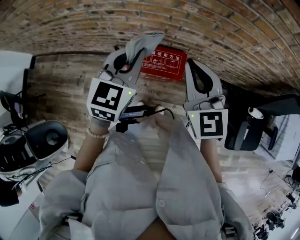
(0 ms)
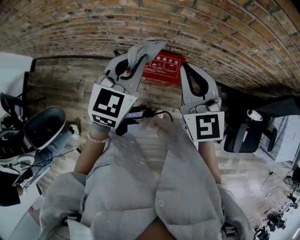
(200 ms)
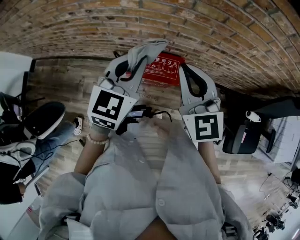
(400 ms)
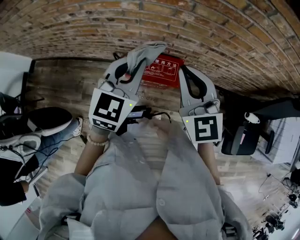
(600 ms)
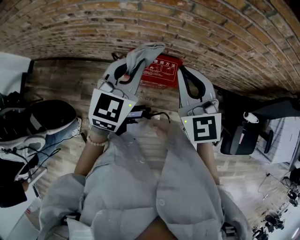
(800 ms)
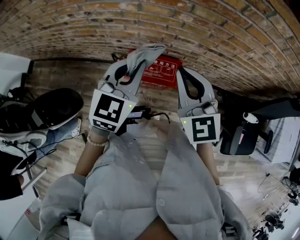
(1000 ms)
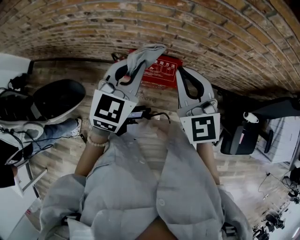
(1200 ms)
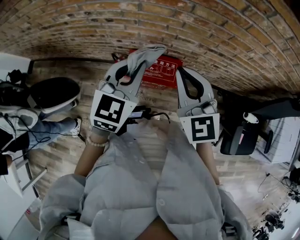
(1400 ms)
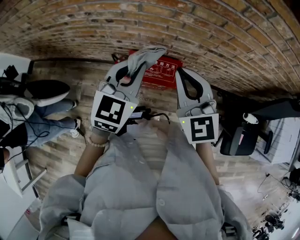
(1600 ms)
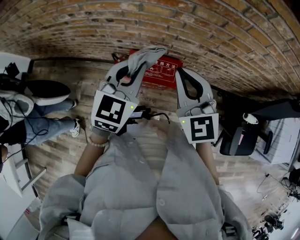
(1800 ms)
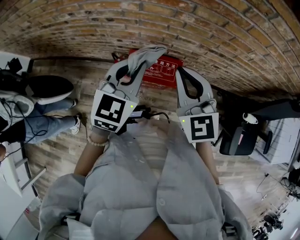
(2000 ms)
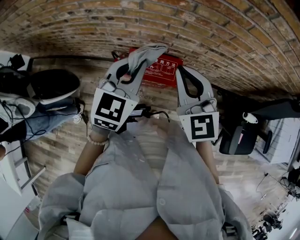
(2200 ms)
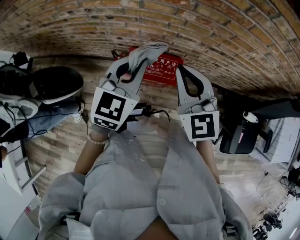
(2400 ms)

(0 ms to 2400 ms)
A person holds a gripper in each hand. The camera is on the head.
0 ms - 1200 ms: There are only small adjustments of the grippers.
1200 ms - 2400 ms: The two grippers keep their place.

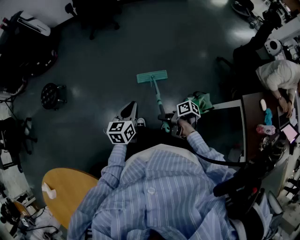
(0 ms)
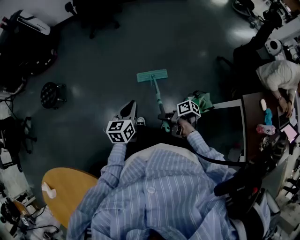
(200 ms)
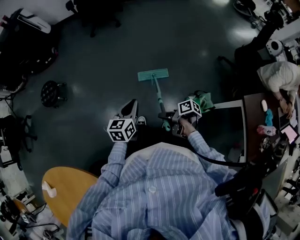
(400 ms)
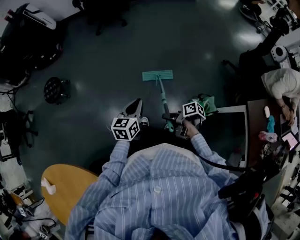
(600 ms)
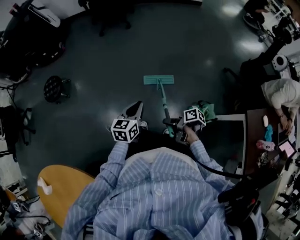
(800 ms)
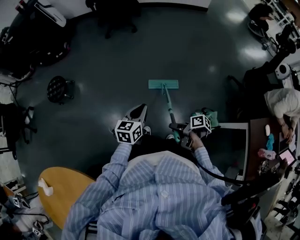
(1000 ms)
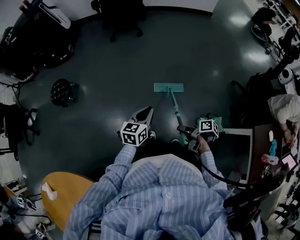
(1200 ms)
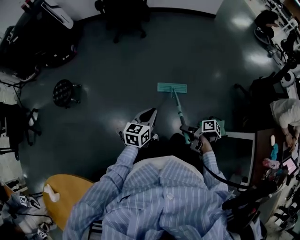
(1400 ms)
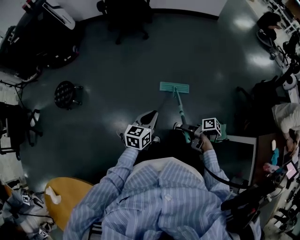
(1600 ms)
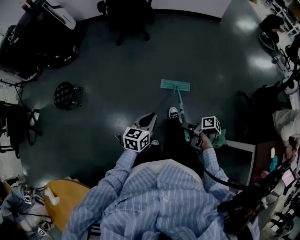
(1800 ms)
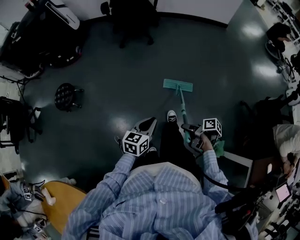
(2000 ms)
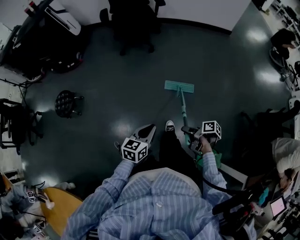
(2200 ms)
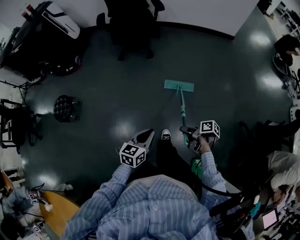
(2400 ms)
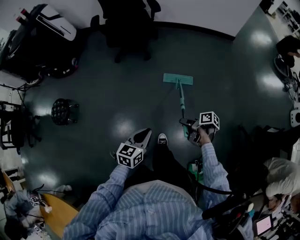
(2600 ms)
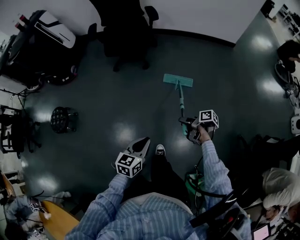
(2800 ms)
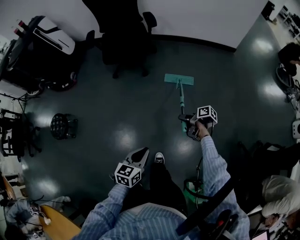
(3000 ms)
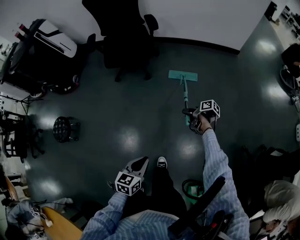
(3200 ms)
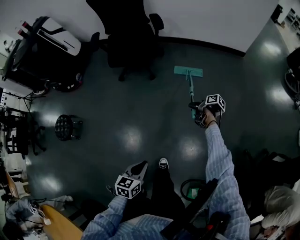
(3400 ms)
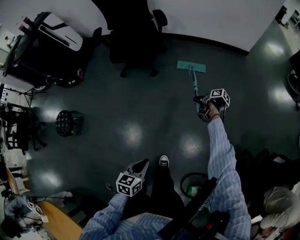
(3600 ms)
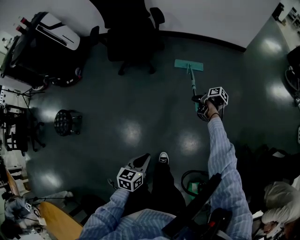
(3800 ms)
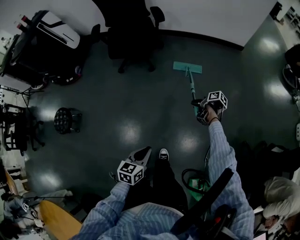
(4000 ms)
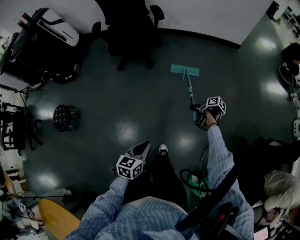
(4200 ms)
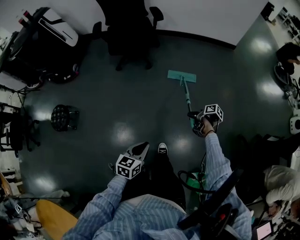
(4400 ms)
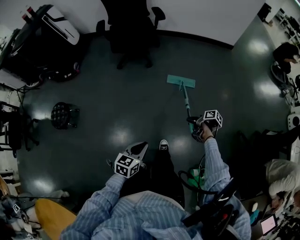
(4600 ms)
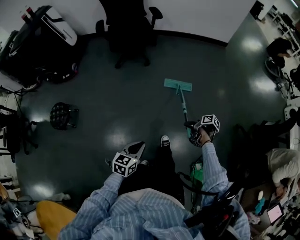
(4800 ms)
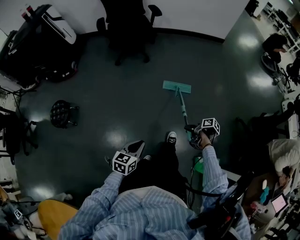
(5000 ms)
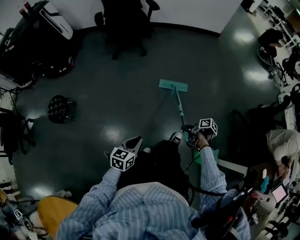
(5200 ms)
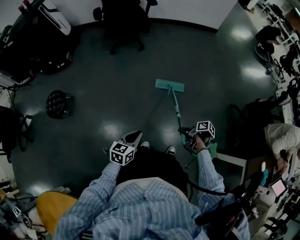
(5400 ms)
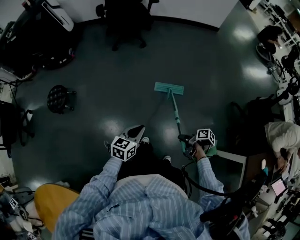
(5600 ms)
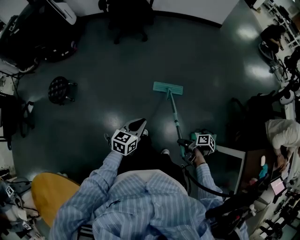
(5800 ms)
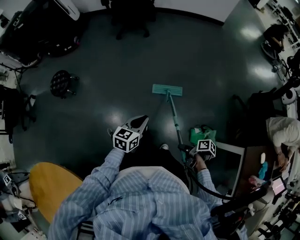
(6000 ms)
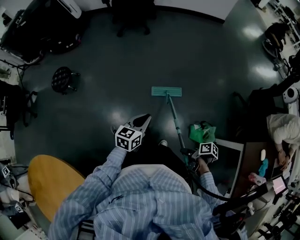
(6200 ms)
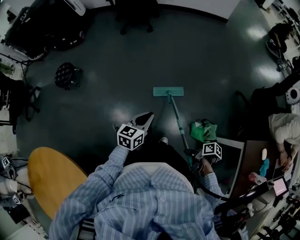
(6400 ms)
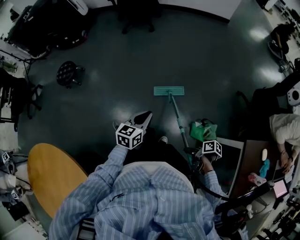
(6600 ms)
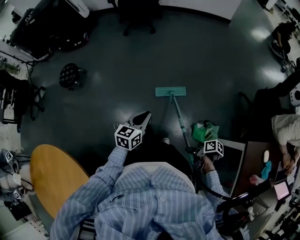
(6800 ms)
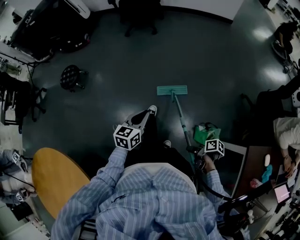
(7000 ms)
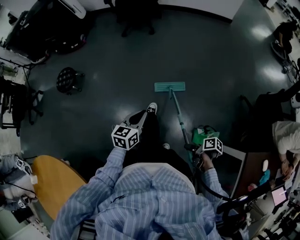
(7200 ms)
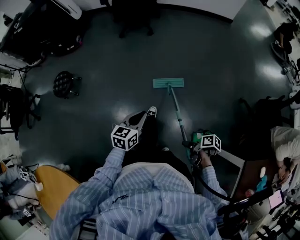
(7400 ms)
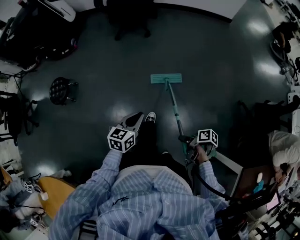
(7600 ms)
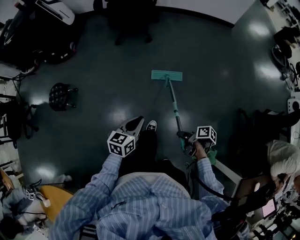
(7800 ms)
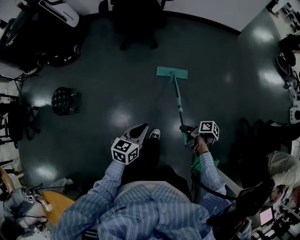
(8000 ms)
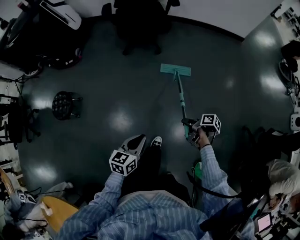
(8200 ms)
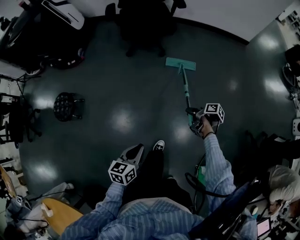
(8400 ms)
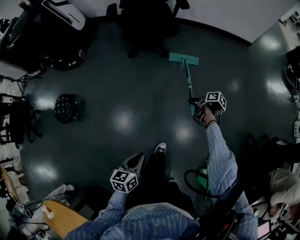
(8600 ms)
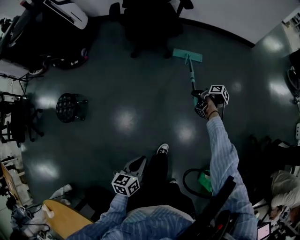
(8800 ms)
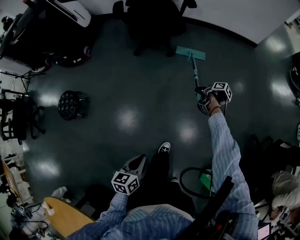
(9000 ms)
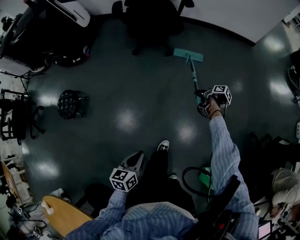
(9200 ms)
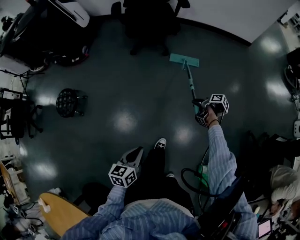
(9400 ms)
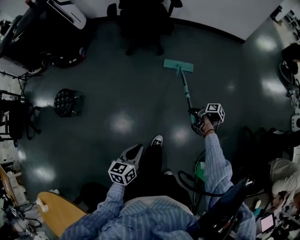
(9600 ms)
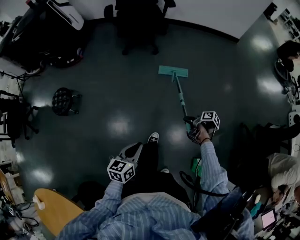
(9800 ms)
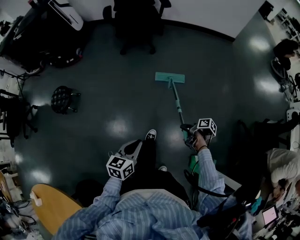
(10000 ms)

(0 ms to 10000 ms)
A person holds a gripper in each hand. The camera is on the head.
0 ms - 1400 ms: The left gripper ends up some 10 cm from where it was.
1400 ms - 2800 ms: The left gripper changes place by approximately 35 cm.
4200 ms - 5800 ms: The left gripper shifts by roughly 30 cm.
7200 ms - 8600 ms: The left gripper changes place by roughly 25 cm.
8600 ms - 10000 ms: The left gripper changes place by roughly 15 cm.

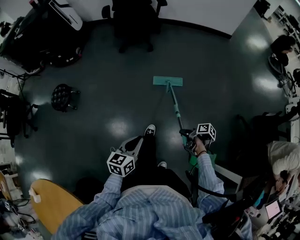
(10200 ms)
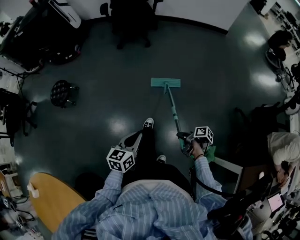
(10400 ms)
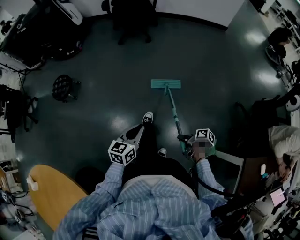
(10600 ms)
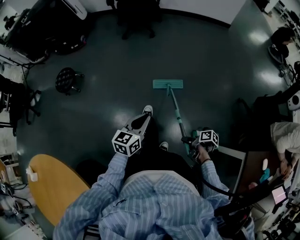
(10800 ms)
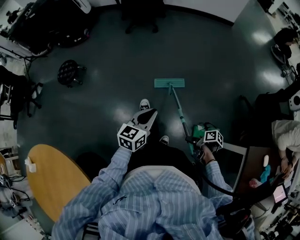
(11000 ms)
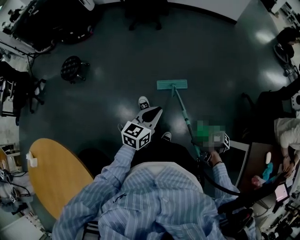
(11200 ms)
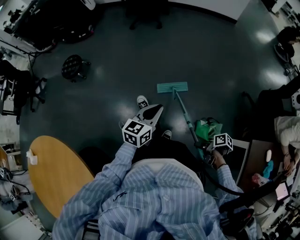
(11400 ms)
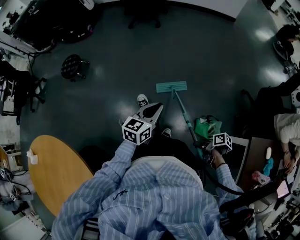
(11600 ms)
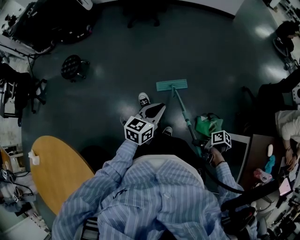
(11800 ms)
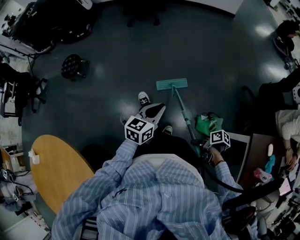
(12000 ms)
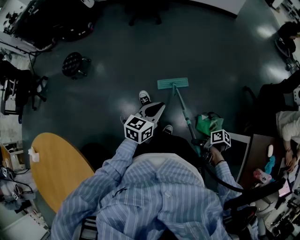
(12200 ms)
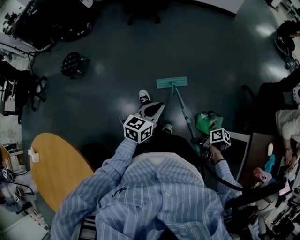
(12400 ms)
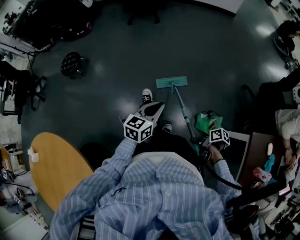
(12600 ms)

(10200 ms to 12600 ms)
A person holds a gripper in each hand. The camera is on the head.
10200 ms - 11400 ms: The left gripper changes place by some 20 cm.

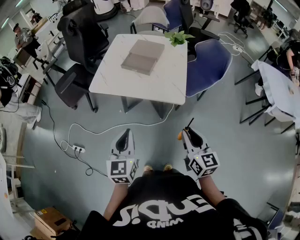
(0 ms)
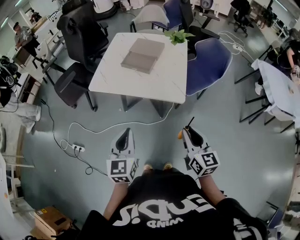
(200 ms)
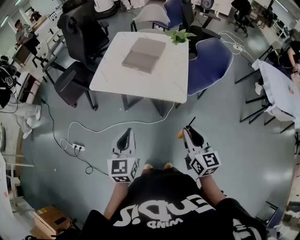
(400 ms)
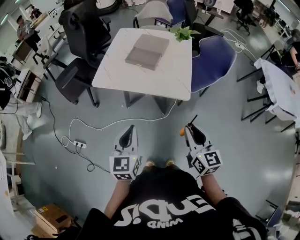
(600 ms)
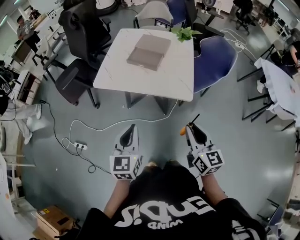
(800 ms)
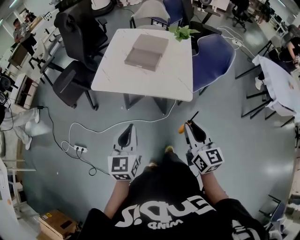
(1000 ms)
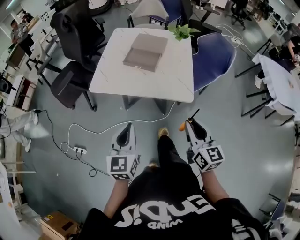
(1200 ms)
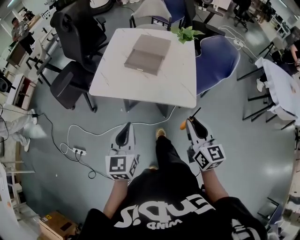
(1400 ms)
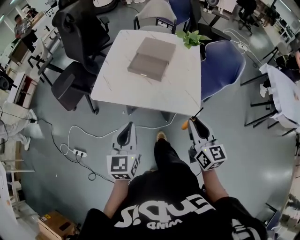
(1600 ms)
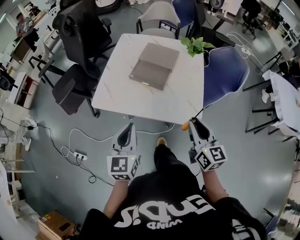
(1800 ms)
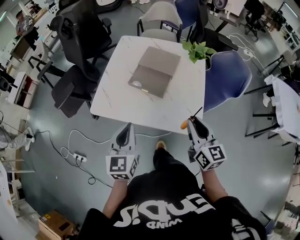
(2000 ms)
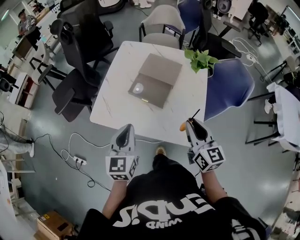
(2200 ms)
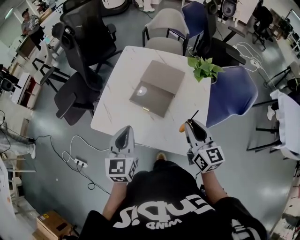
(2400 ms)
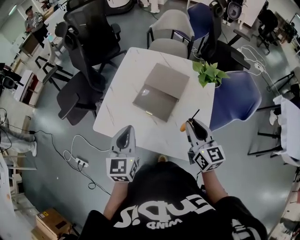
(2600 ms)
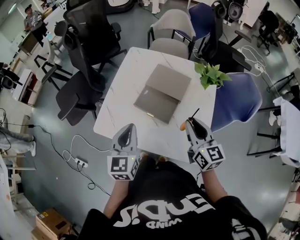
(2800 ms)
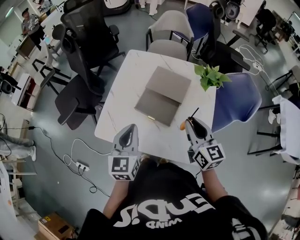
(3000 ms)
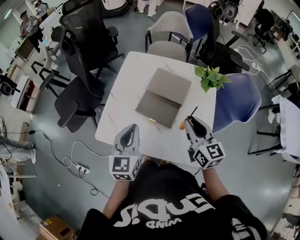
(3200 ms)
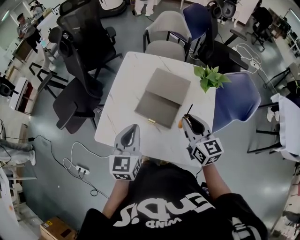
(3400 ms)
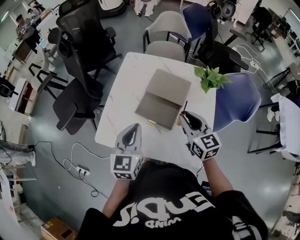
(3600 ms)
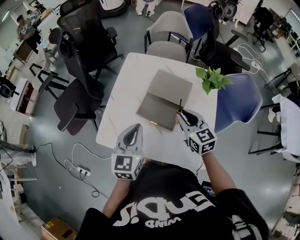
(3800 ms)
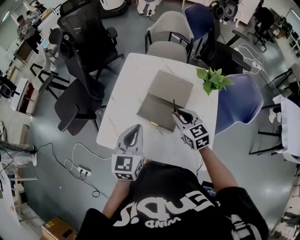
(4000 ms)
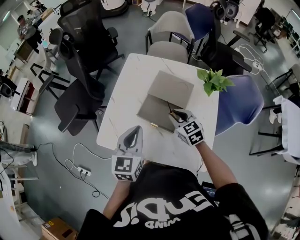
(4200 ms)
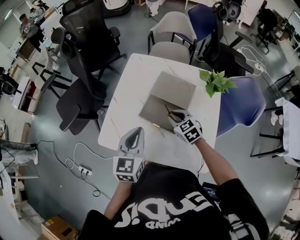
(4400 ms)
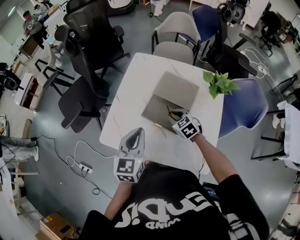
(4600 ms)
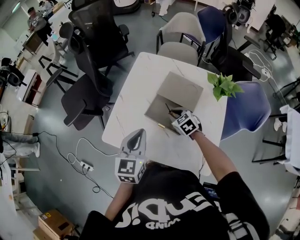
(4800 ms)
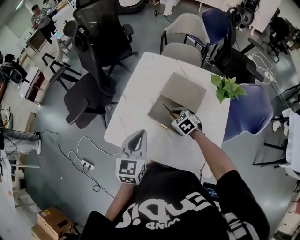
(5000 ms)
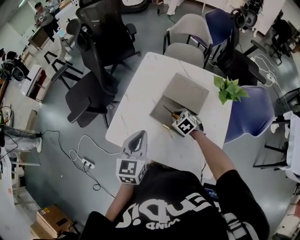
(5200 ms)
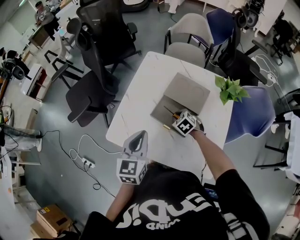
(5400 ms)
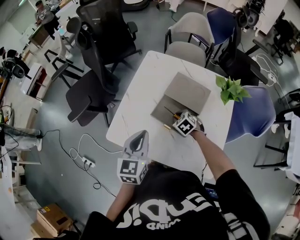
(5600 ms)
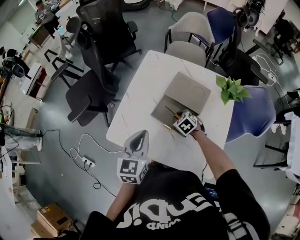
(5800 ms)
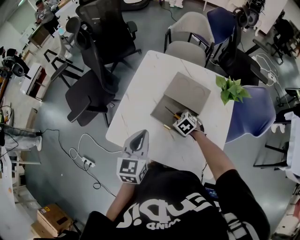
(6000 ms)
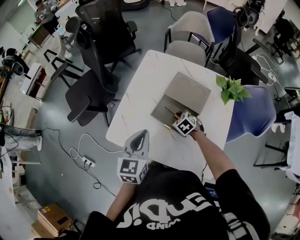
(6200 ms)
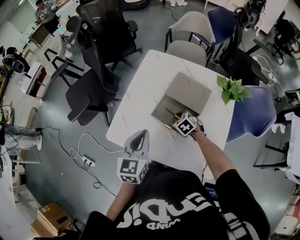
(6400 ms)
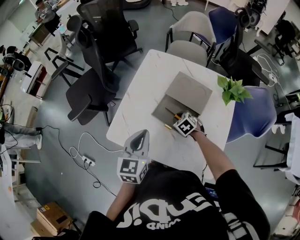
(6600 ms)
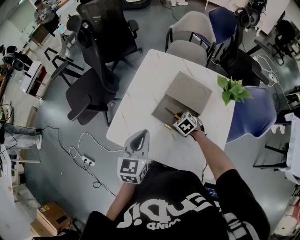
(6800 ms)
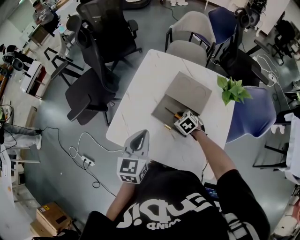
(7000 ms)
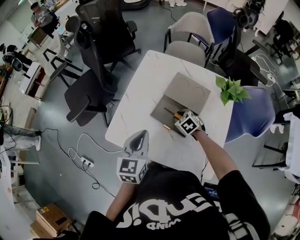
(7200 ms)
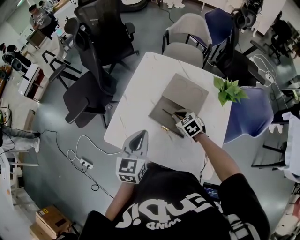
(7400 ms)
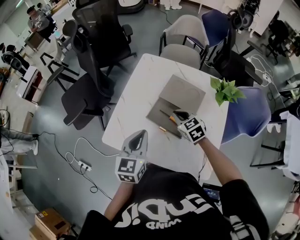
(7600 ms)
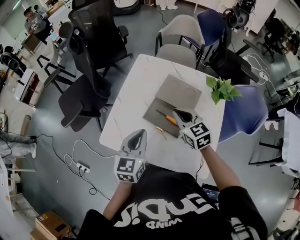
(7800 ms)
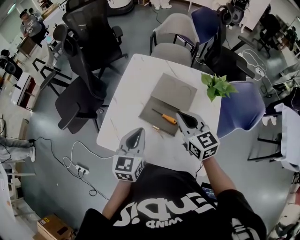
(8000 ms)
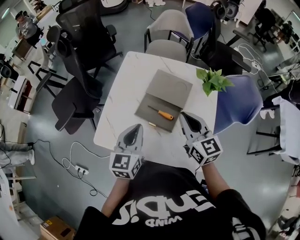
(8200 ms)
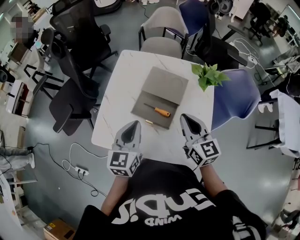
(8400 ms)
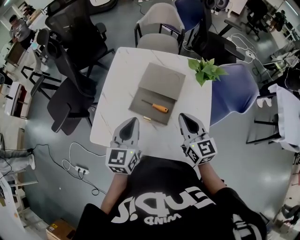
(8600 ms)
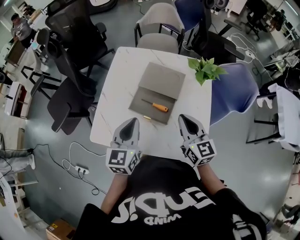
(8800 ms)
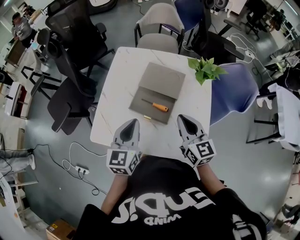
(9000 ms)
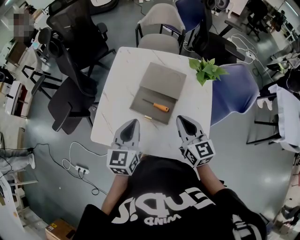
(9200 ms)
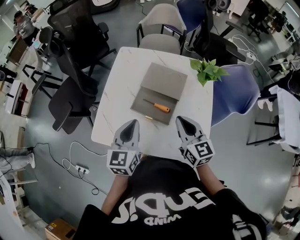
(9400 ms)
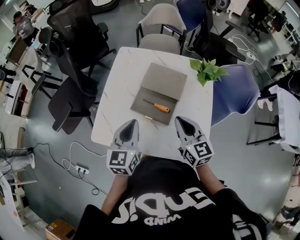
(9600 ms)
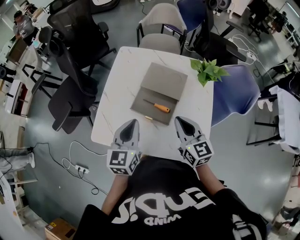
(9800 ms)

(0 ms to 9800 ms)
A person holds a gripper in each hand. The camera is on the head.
0 ms - 1400 ms: The left gripper goes roughly 10 cm forward and to the left; the right gripper shifts roughly 10 cm forward.
1400 ms - 2800 ms: The grippers both shift forward by roughly 30 cm.
2800 ms - 4200 ms: The left gripper goes roughly 5 cm forward, while the right gripper travels forward, downward and to the left by roughly 20 cm, and rotates about 30 degrees.
4200 ms - 5600 ms: The right gripper is displaced downward by about 15 cm, and swivels some 30 degrees.
5600 ms - 7000 ms: The grippers make only small movements.
7000 ms - 8400 ms: The right gripper travels upward and backward by about 25 cm, and angles its fingers upward, by some 50 degrees. The left gripper ends up about 5 cm from where it was.
8400 ms - 9800 ms: The grippers stay close to where they were, moving slightly.
